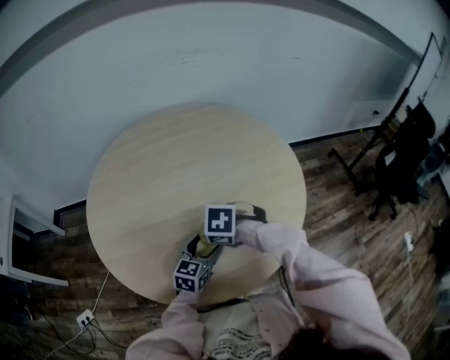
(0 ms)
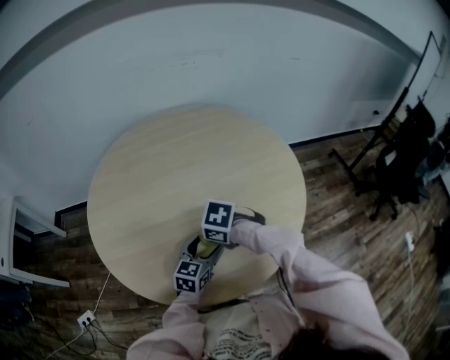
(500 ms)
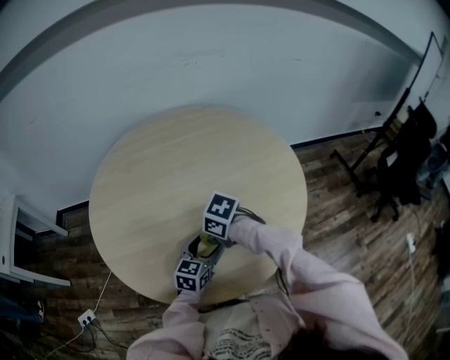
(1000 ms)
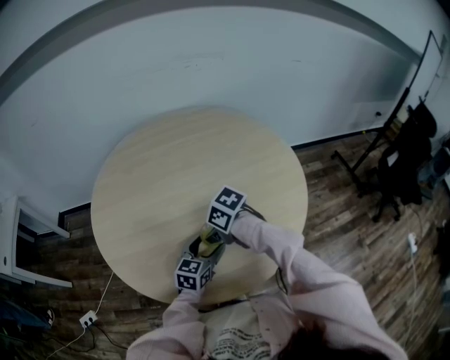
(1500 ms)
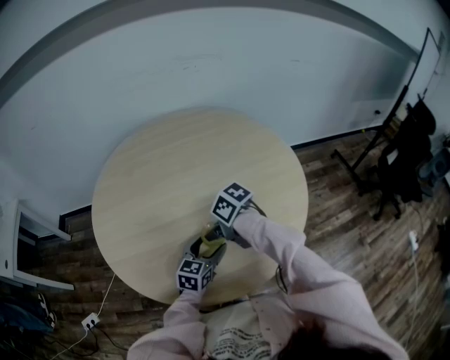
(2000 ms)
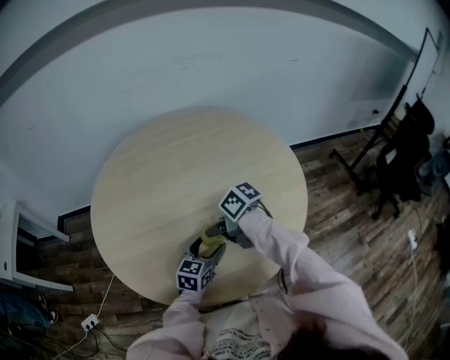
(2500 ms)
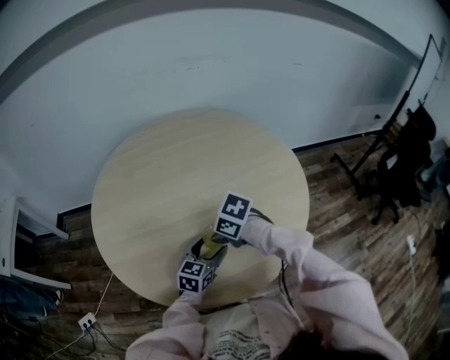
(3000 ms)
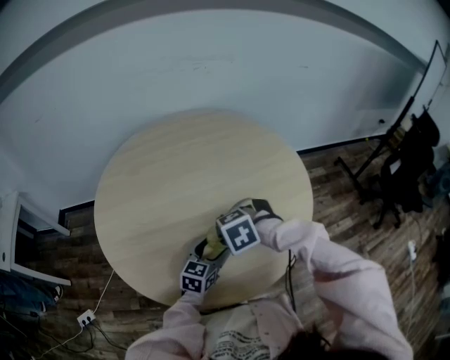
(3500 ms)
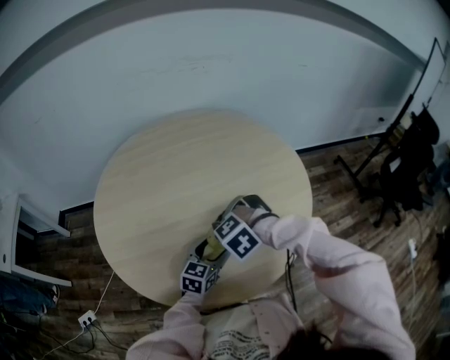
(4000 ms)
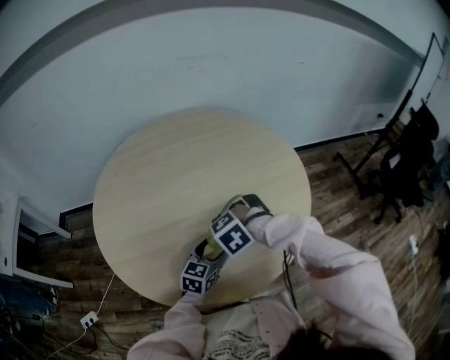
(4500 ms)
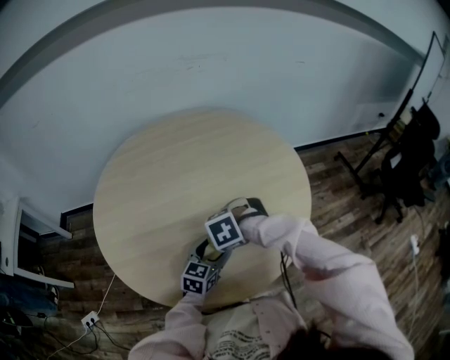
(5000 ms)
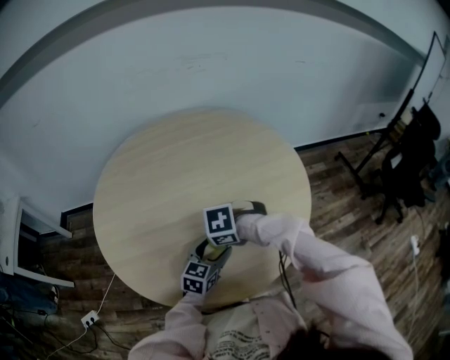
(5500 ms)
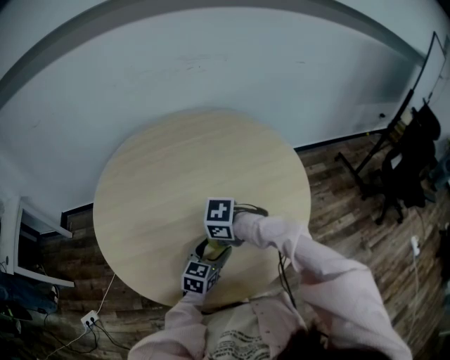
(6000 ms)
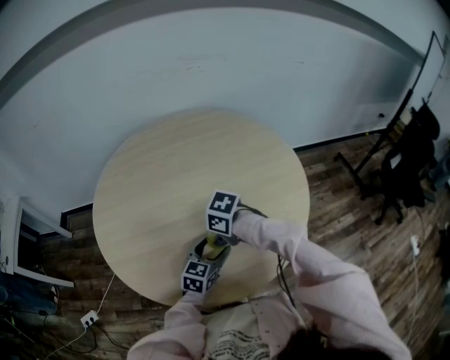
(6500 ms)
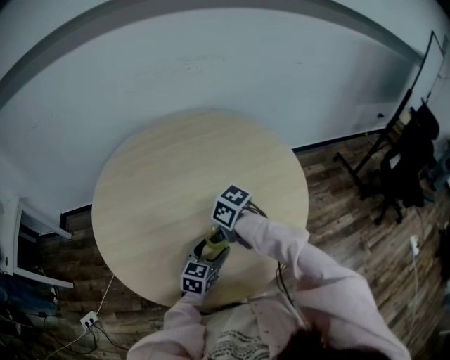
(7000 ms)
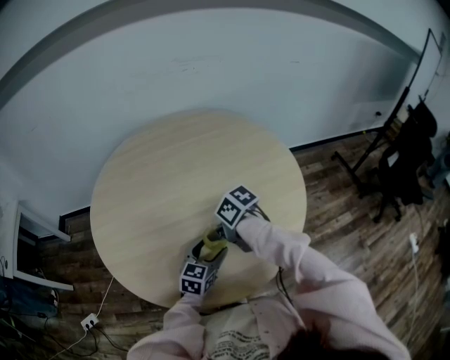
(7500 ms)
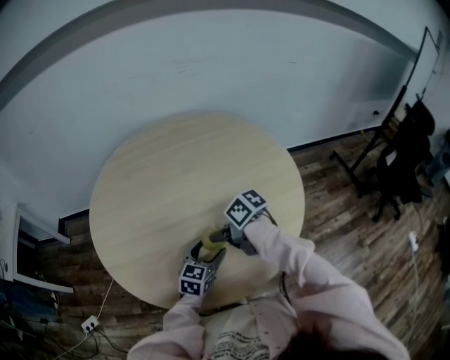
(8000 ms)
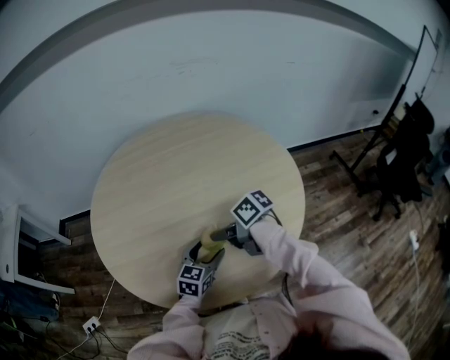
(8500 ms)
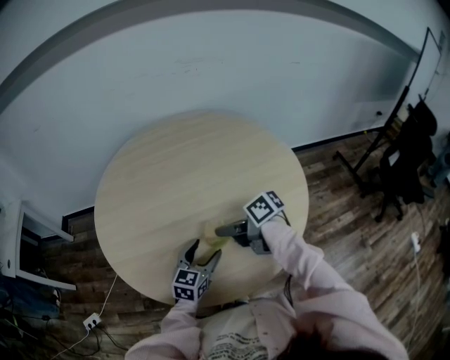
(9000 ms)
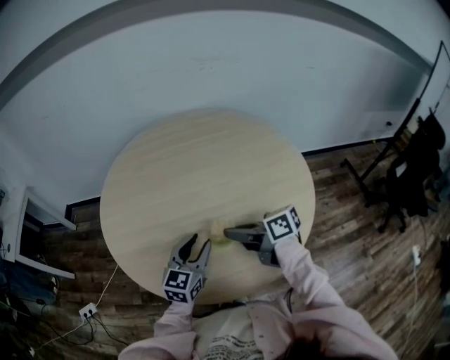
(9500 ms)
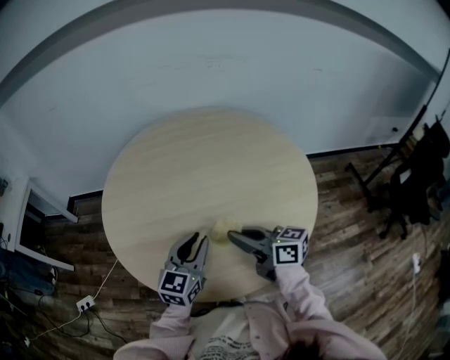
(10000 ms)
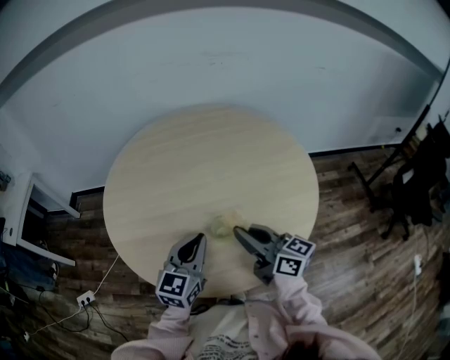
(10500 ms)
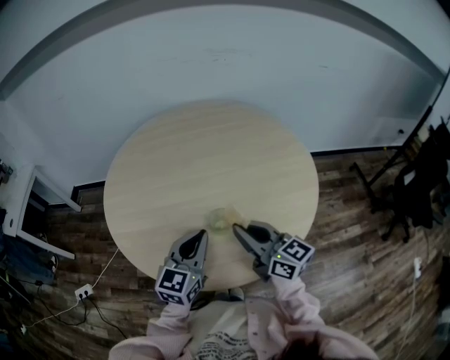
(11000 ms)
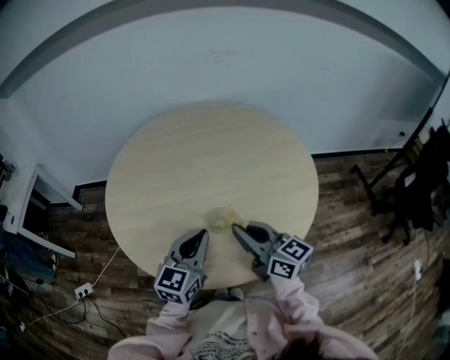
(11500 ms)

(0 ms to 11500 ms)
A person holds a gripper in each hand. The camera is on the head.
0 ms - 2000 ms: The right gripper angles its fingers upward, by roughly 30 degrees.
2000 ms - 4000 ms: The right gripper rolls counterclockwise, seen from behind, by roughly 90 degrees.
4000 ms - 6000 ms: The right gripper twists about 60 degrees clockwise, seen from behind.
6000 ms - 7500 ms: The right gripper changes its angle by some 50 degrees.
7500 ms - 9500 ms: The right gripper goes roughly 5 cm upward, and tips its fingers upward by about 30 degrees, while the left gripper heads upward, covering roughly 10 cm, and closes its fingers.
9500 ms - 11500 ms: The grippers both shift upward and backward by about 5 cm. The left gripper closes its fingers. The right gripper turns by about 40 degrees.

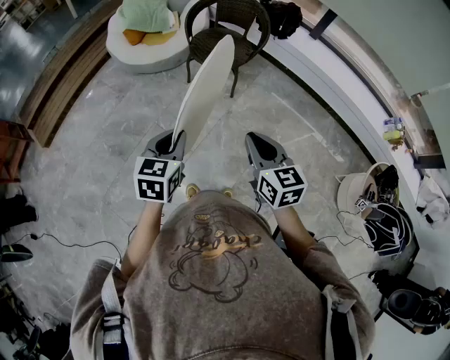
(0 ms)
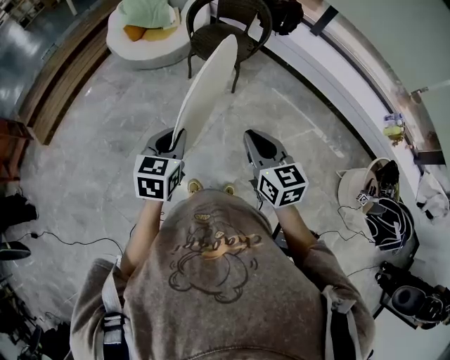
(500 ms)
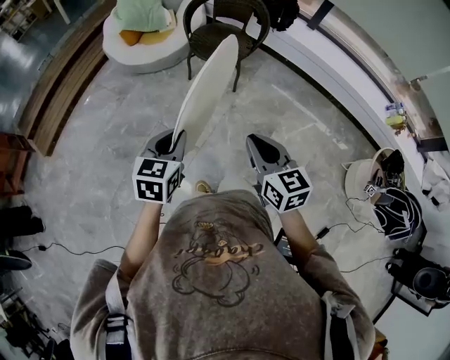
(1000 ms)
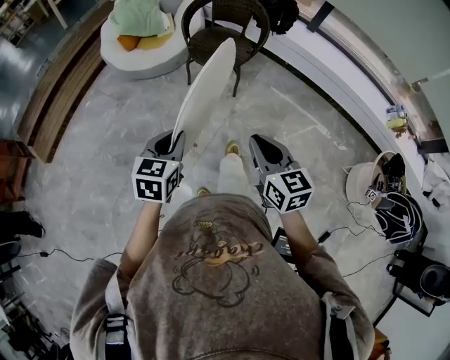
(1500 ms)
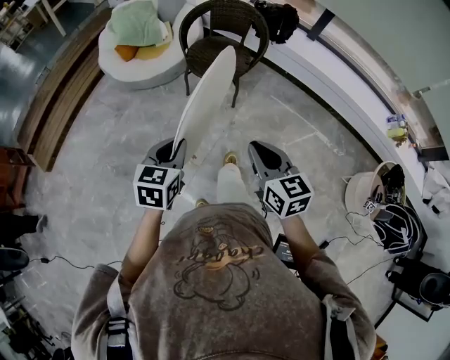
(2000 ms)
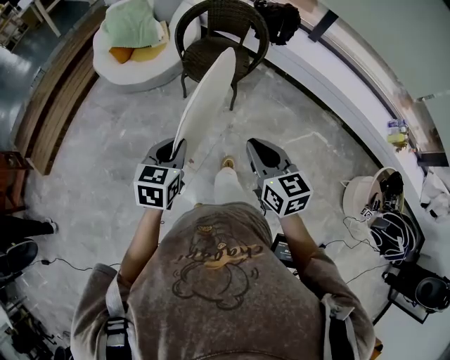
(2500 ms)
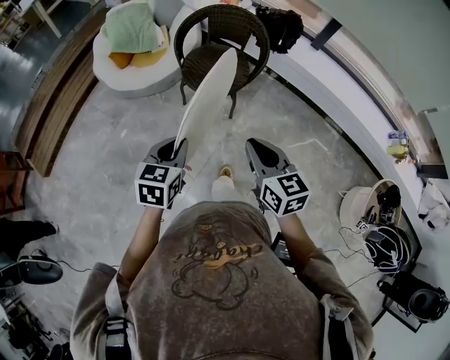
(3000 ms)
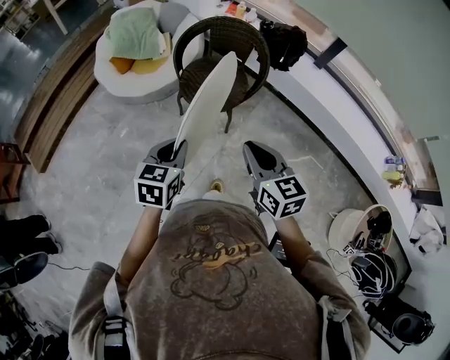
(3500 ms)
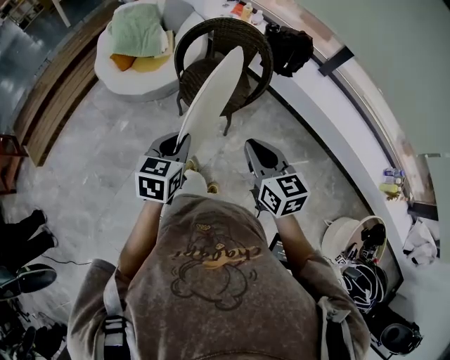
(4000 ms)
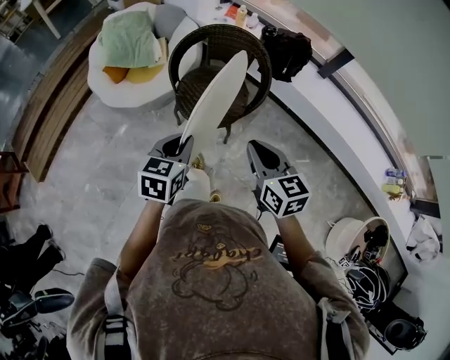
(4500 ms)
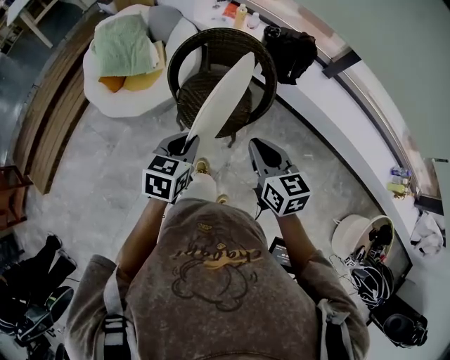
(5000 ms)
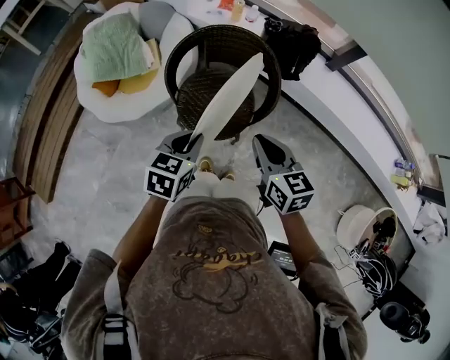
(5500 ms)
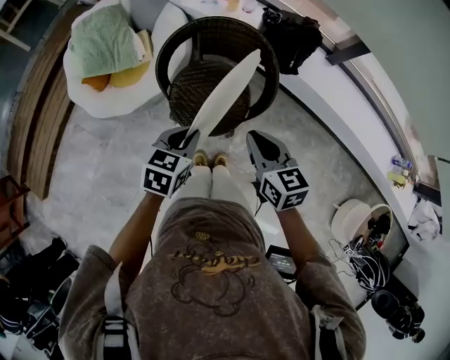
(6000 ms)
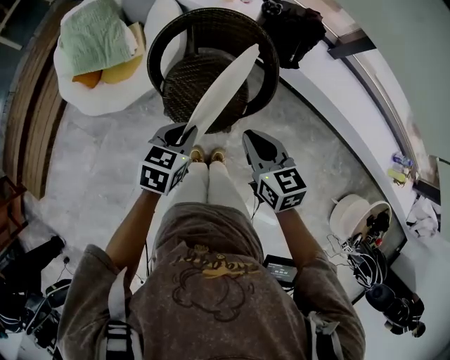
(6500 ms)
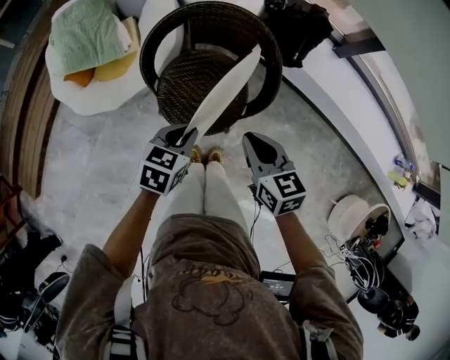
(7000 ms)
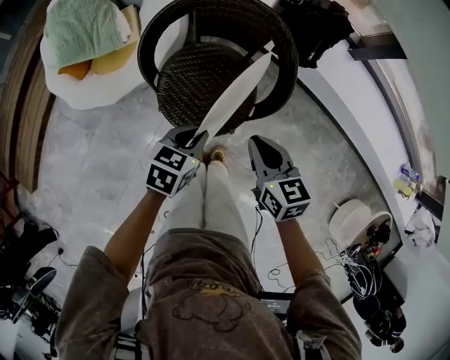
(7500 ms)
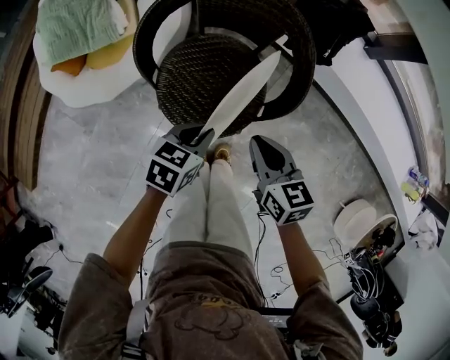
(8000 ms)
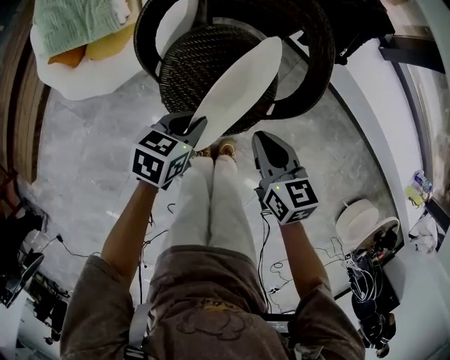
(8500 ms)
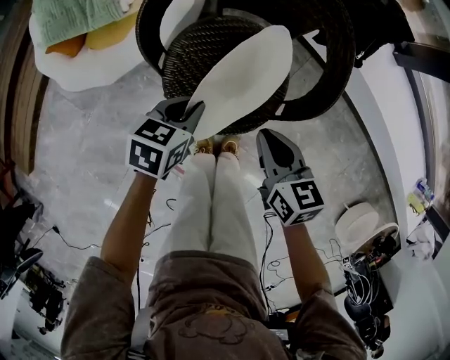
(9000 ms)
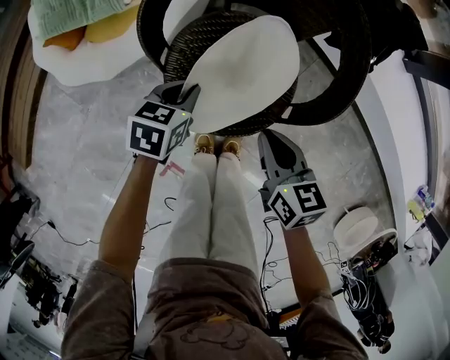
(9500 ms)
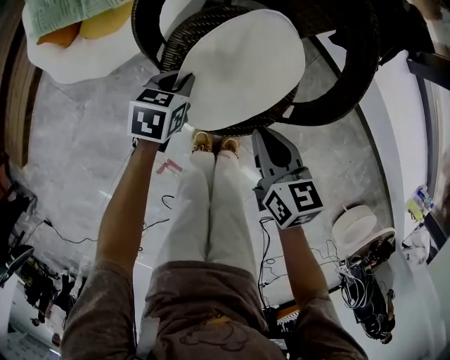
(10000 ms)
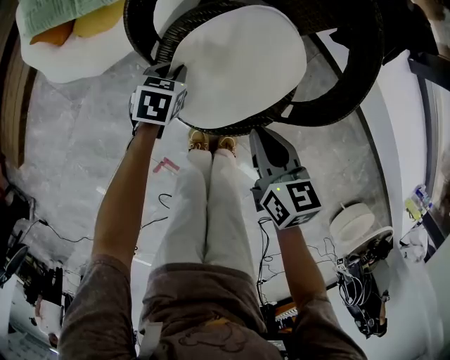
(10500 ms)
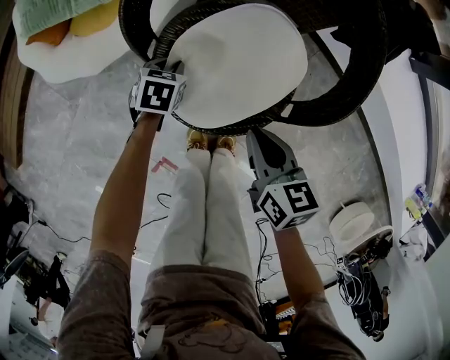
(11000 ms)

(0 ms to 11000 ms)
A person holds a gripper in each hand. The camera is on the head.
0 ms - 2000 ms: Both grippers travel together forward, approximately 10 cm.
2000 ms - 3500 ms: The left gripper heads forward and to the right, covering approximately 20 cm. The right gripper goes about 20 cm forward.
3500 ms - 5500 ms: The grippers both shift forward by approximately 25 cm.
5500 ms - 7500 ms: Both grippers travel together downward and forward, some 20 cm.
7500 ms - 9000 ms: The left gripper shifts some 15 cm downward, to the left and forward, while the right gripper shifts roughly 10 cm downward.
9000 ms - 11000 ms: The right gripper travels downward by approximately 5 cm; the left gripper heads downward and to the left, covering approximately 20 cm, and changes its angle by some 20 degrees.

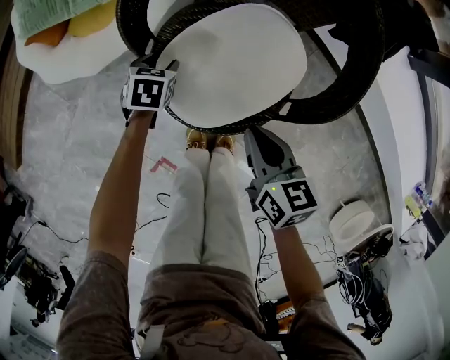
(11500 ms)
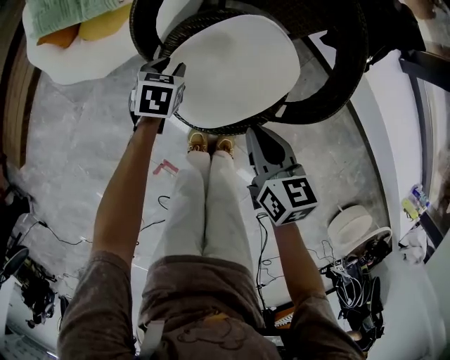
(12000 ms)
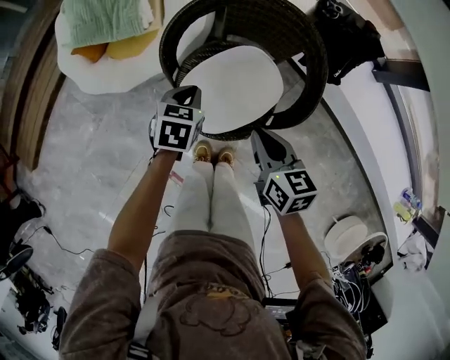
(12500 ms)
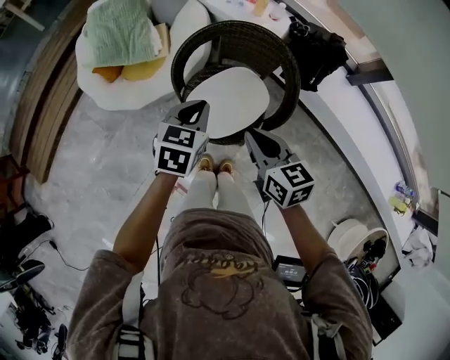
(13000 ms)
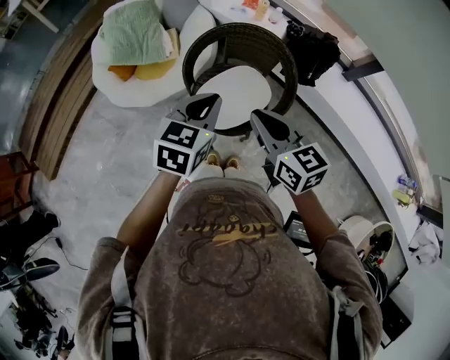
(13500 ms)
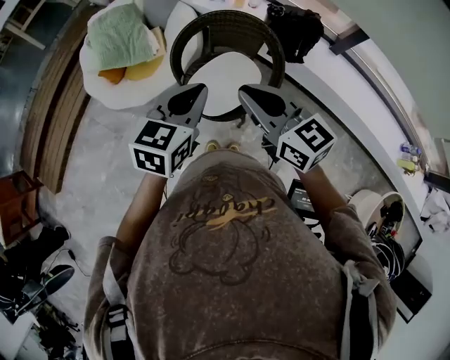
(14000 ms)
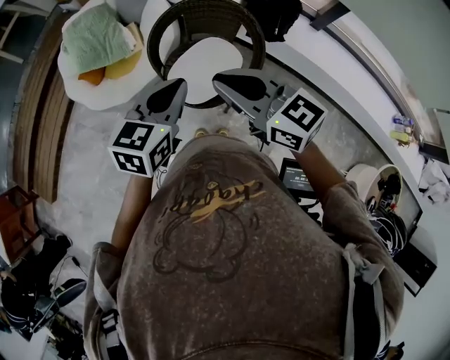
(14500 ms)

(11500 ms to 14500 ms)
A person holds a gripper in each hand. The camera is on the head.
11500 ms - 13000 ms: Both grippers move upward, about 35 cm. The left gripper turns by approximately 30 degrees, and closes up.
13000 ms - 14500 ms: Both grippers travel together upward and backward, about 20 cm. The right gripper changes its angle by about 30 degrees, while the left gripper changes its angle by some 20 degrees.

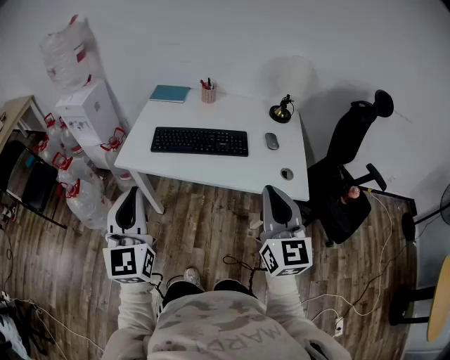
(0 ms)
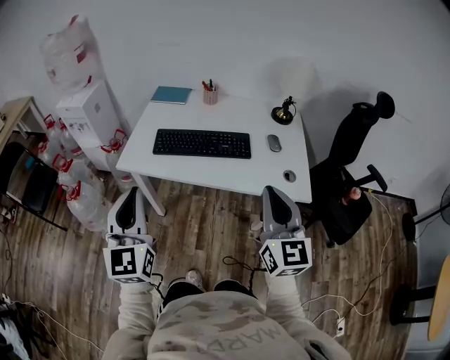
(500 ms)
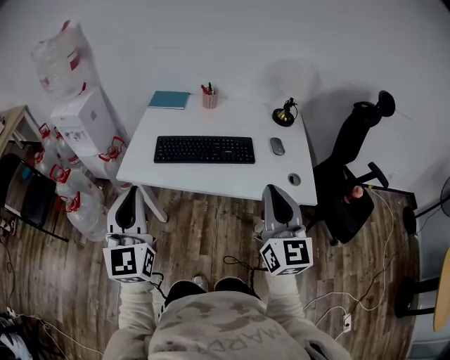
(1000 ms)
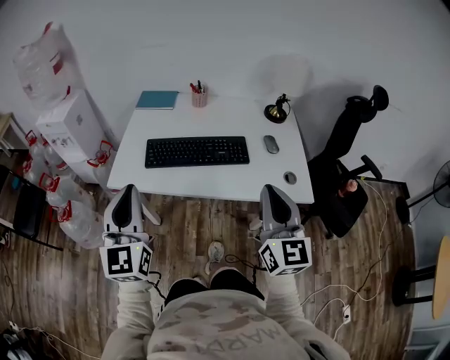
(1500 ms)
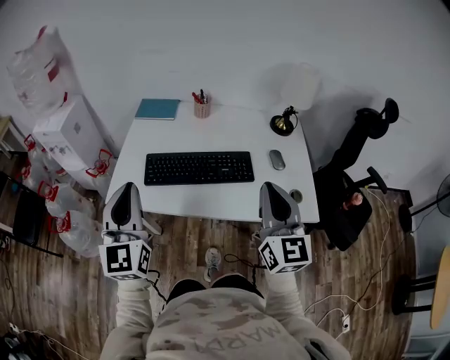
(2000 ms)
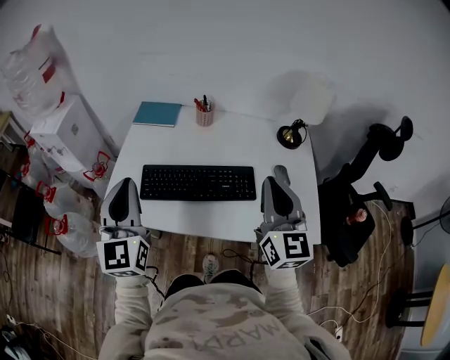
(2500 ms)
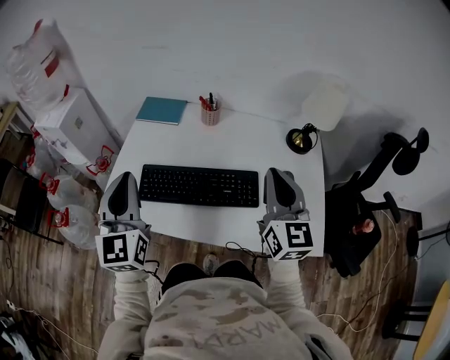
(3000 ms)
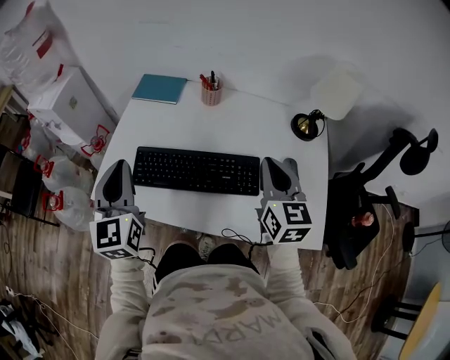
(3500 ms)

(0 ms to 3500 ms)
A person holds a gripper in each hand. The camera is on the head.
0 ms - 2000 ms: Both grippers travel together forward, some 20 cm.
2000 ms - 3500 ms: The grippers both shift forward and downward by approximately 20 cm.
